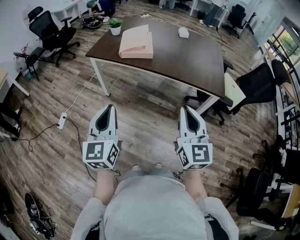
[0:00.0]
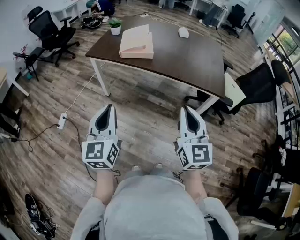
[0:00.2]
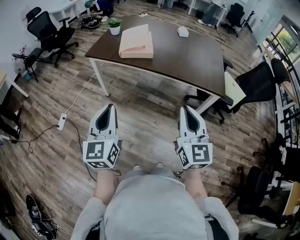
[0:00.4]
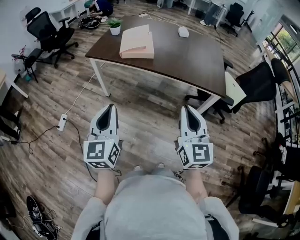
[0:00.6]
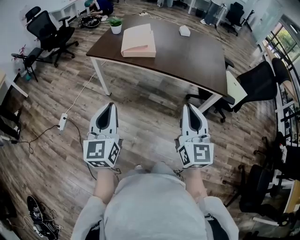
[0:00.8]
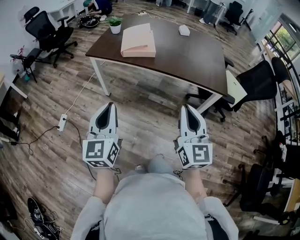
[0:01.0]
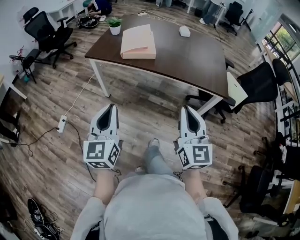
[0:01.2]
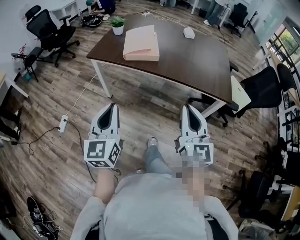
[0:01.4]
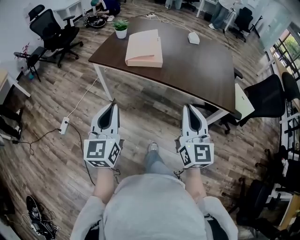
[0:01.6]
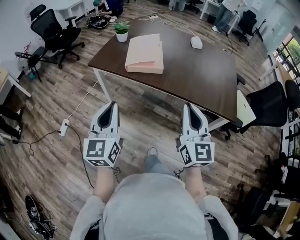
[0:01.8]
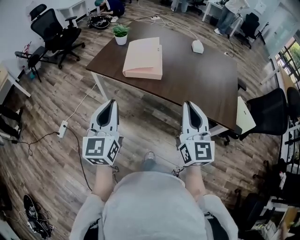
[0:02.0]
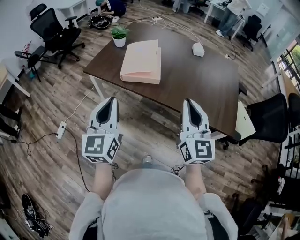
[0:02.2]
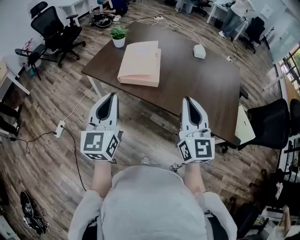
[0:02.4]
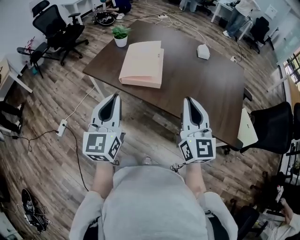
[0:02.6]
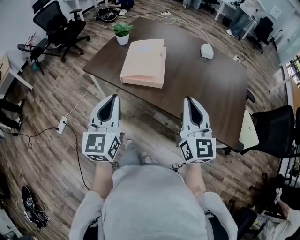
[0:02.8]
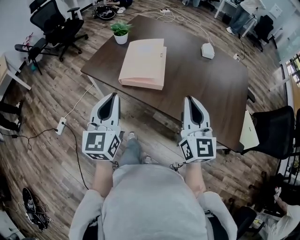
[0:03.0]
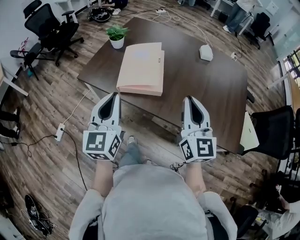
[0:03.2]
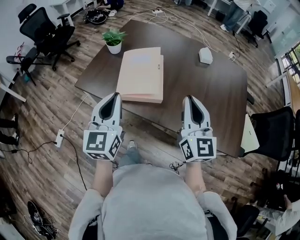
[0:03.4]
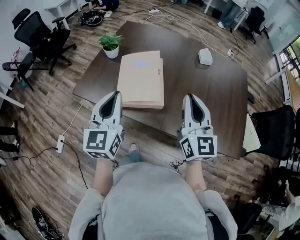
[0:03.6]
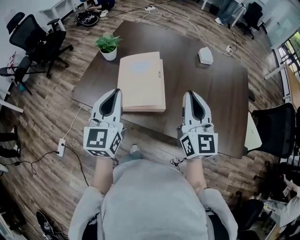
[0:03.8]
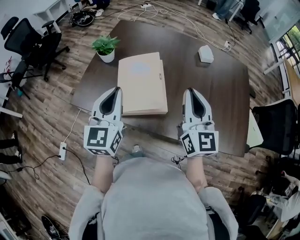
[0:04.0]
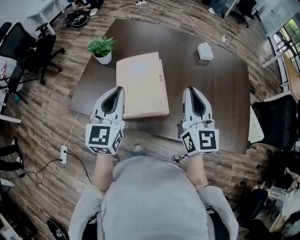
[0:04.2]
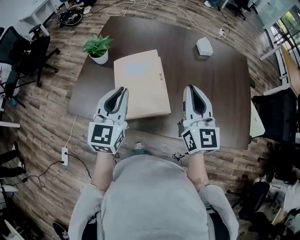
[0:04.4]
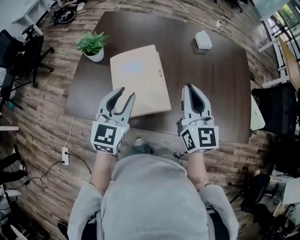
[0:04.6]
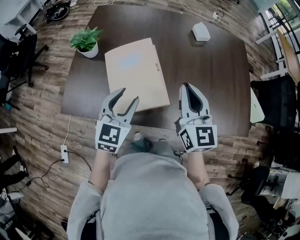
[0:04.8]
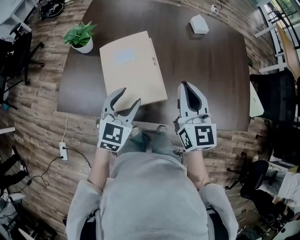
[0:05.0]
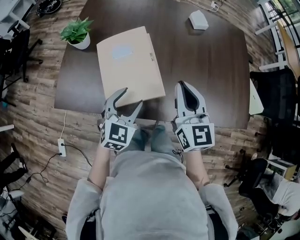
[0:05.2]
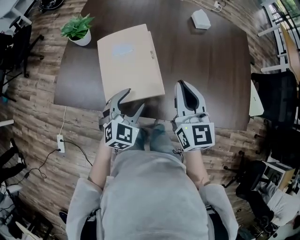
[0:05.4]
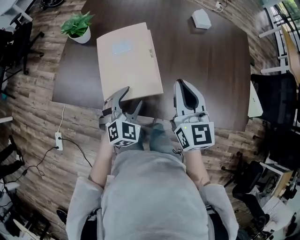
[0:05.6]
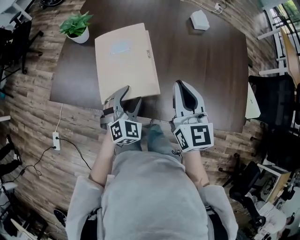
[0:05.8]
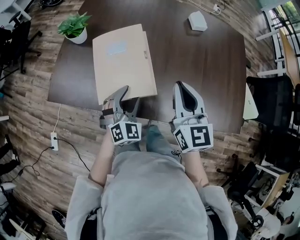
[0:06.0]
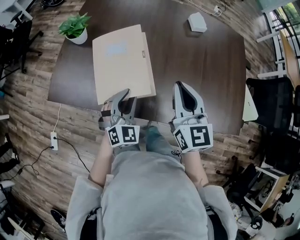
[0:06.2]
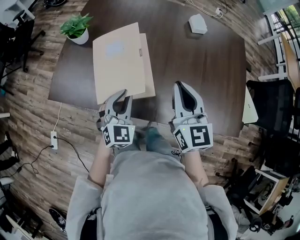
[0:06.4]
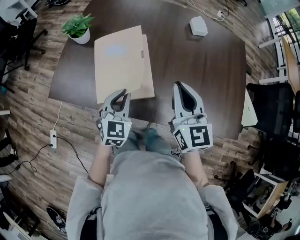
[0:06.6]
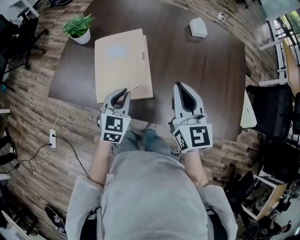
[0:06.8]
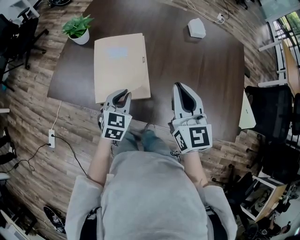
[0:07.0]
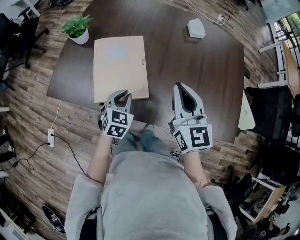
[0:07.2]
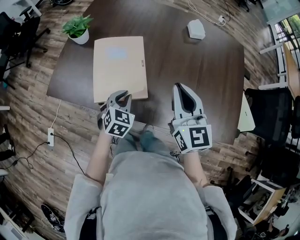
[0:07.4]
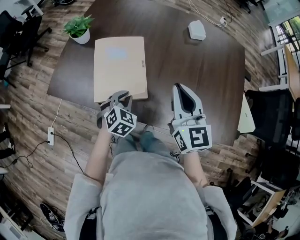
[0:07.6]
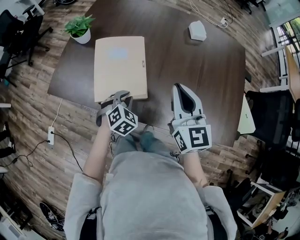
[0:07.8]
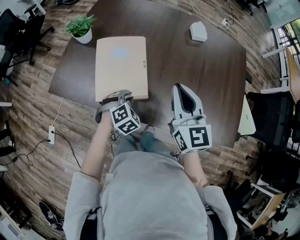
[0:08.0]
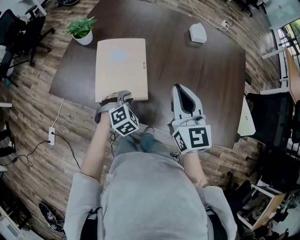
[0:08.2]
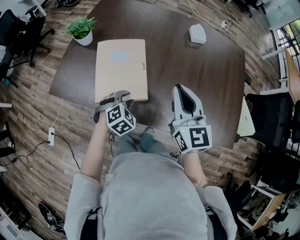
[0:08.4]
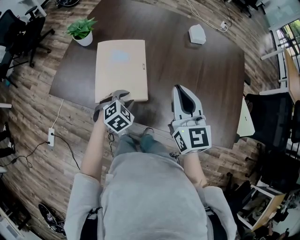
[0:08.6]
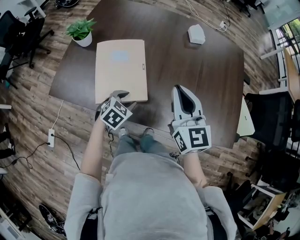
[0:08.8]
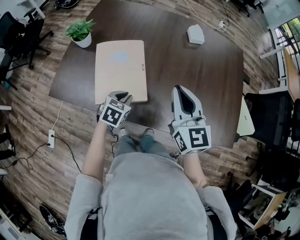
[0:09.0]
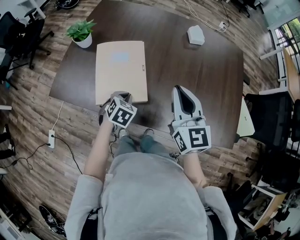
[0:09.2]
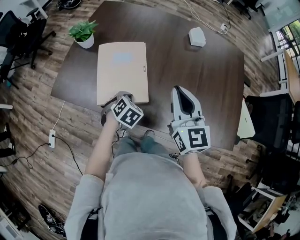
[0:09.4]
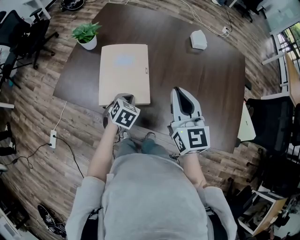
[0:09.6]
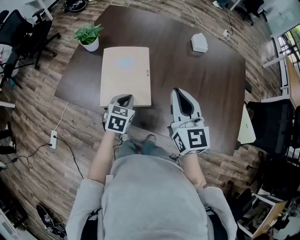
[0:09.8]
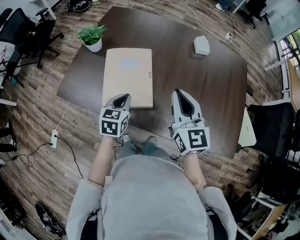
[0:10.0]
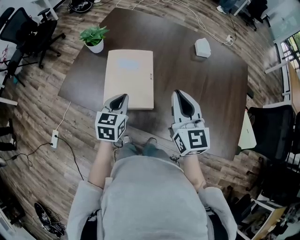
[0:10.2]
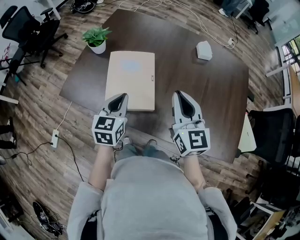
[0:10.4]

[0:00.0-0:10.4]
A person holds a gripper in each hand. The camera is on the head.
0:00.0 to 0:01.4: The grippers both shift forward by approximately 5 cm.
0:01.4 to 0:03.0: The two grippers go some 30 cm forward.
0:03.0 to 0:04.4: Both grippers move forward, some 25 cm. The left gripper rotates about 20 degrees.
0:04.4 to 0:06.0: The right gripper is displaced downward by roughly 5 cm. The left gripper travels downward and to the right by some 20 cm, changes its angle by about 40 degrees, and opens up.
0:06.0 to 0:07.4: The left gripper swivels approximately 30 degrees, and closes its fingers.
0:07.4 to 0:09.0: The left gripper opens, then closes again.
0:09.0 to 0:10.4: The left gripper goes approximately 15 cm upward, and changes its angle by roughly 30 degrees.

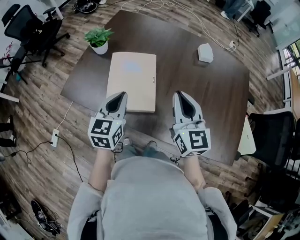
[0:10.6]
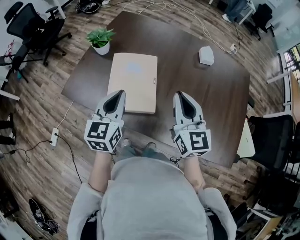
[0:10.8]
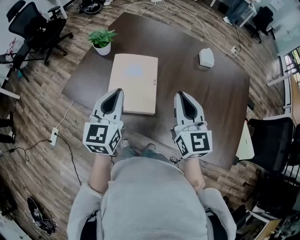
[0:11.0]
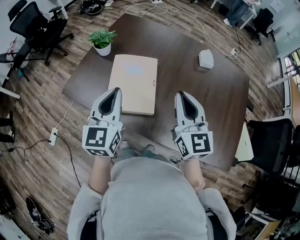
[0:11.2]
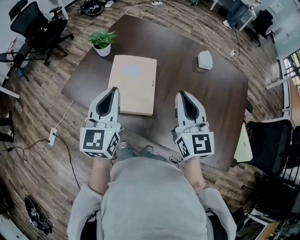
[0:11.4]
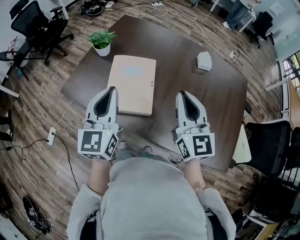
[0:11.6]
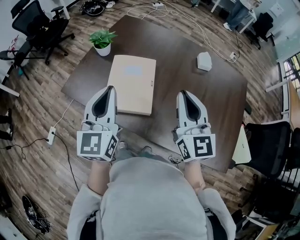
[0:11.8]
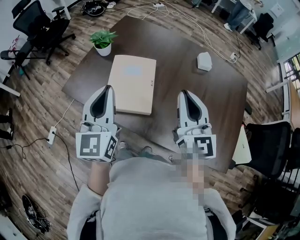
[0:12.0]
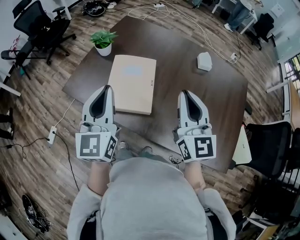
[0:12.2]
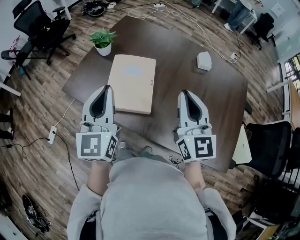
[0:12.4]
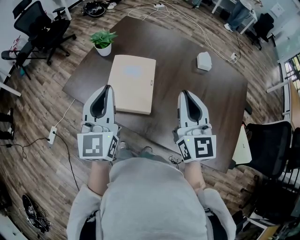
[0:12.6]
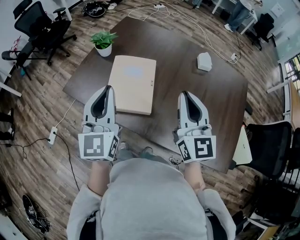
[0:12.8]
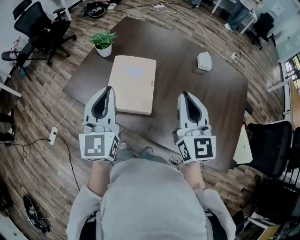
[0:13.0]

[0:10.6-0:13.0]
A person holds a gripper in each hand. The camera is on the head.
0:10.6 to 0:11.8: The left gripper is displaced upward by some 10 cm, and rotates approximately 20 degrees. The right gripper goes about 5 cm upward.
0:11.8 to 0:13.0: The grippers stay close to where they were, moving slightly.

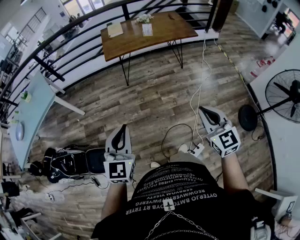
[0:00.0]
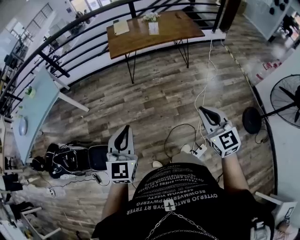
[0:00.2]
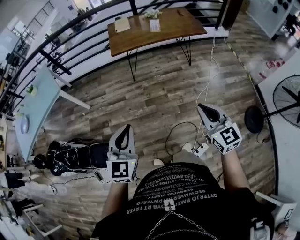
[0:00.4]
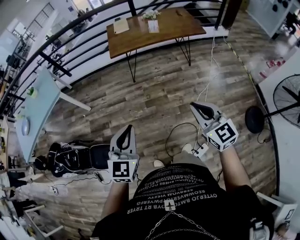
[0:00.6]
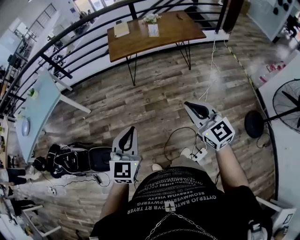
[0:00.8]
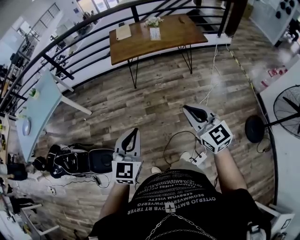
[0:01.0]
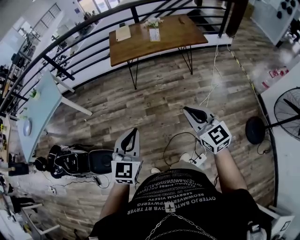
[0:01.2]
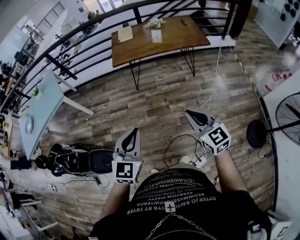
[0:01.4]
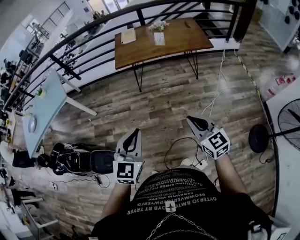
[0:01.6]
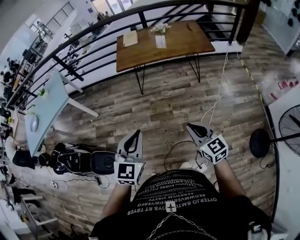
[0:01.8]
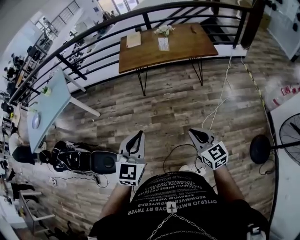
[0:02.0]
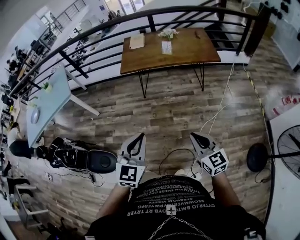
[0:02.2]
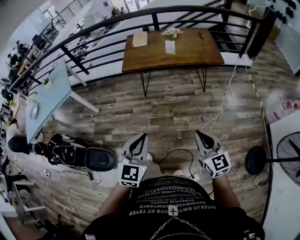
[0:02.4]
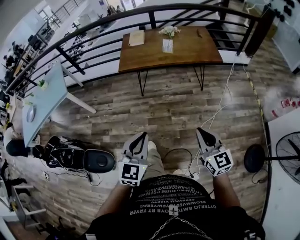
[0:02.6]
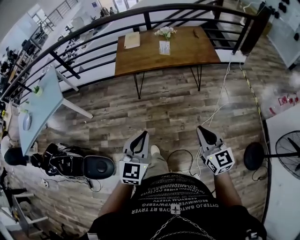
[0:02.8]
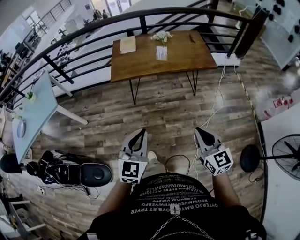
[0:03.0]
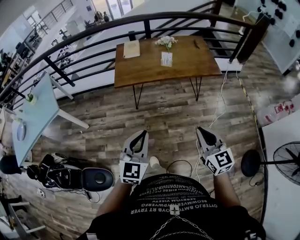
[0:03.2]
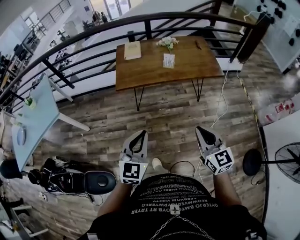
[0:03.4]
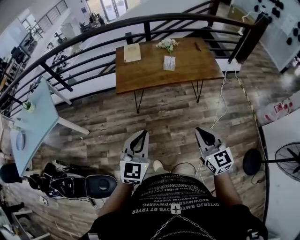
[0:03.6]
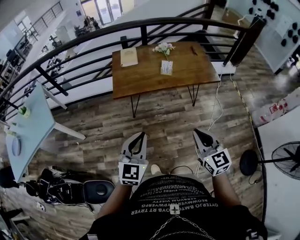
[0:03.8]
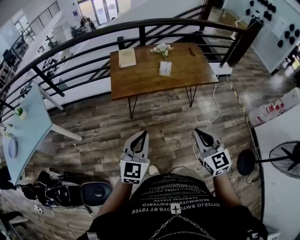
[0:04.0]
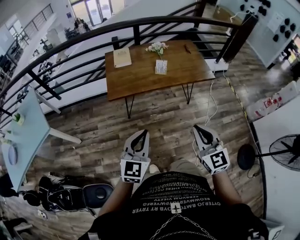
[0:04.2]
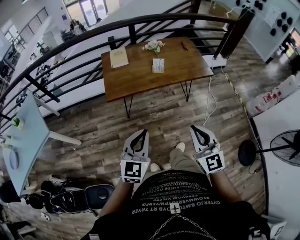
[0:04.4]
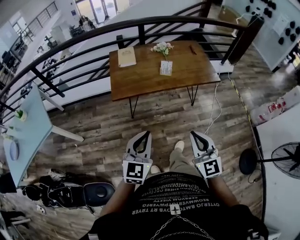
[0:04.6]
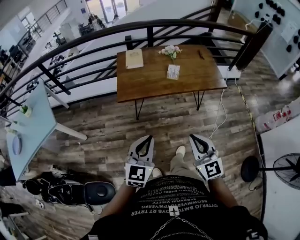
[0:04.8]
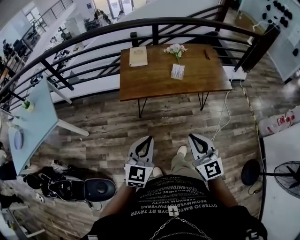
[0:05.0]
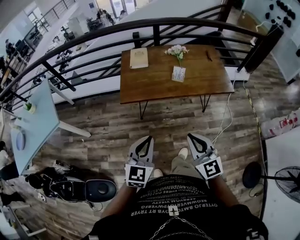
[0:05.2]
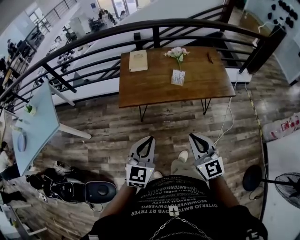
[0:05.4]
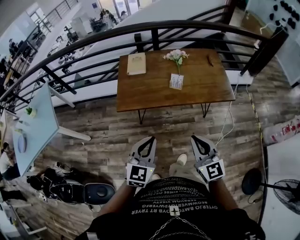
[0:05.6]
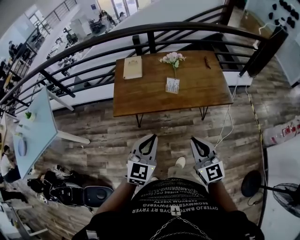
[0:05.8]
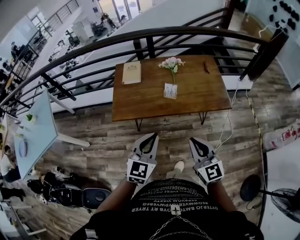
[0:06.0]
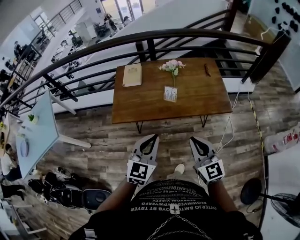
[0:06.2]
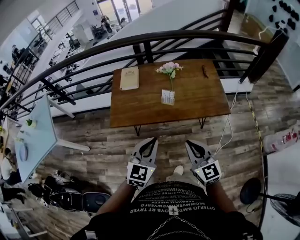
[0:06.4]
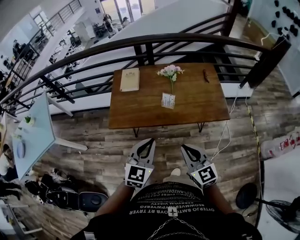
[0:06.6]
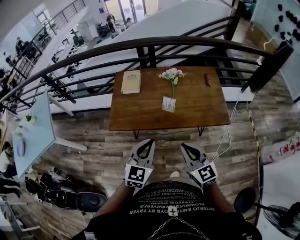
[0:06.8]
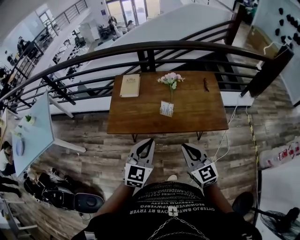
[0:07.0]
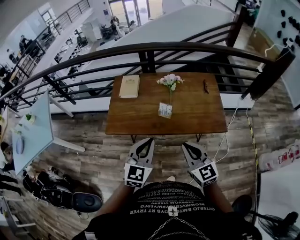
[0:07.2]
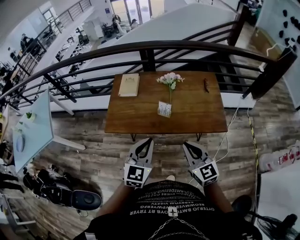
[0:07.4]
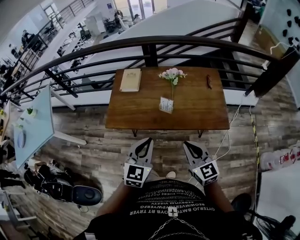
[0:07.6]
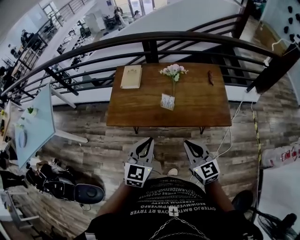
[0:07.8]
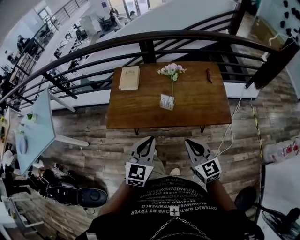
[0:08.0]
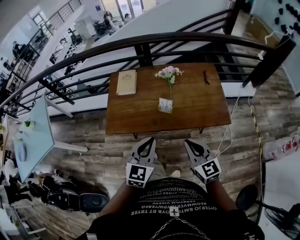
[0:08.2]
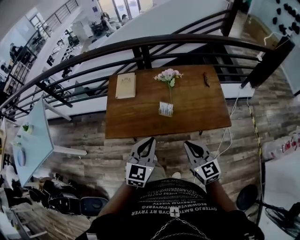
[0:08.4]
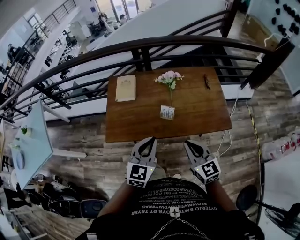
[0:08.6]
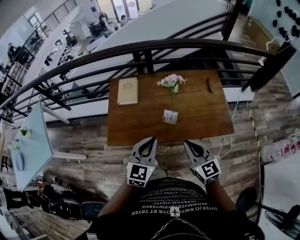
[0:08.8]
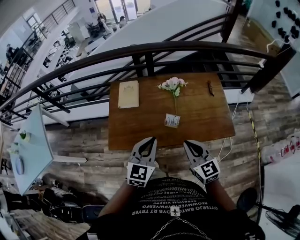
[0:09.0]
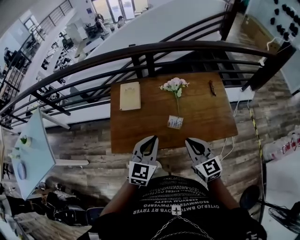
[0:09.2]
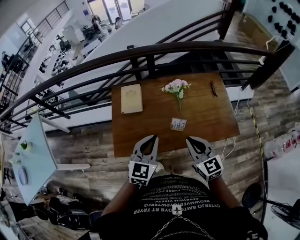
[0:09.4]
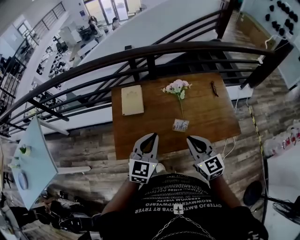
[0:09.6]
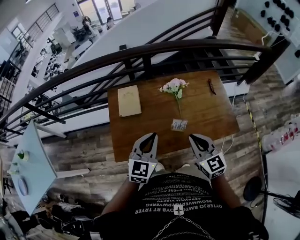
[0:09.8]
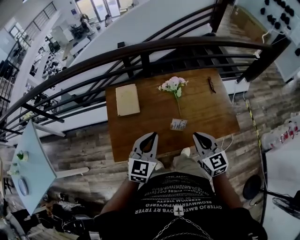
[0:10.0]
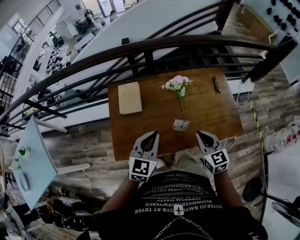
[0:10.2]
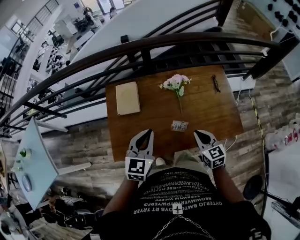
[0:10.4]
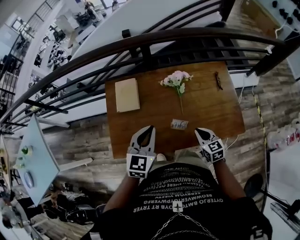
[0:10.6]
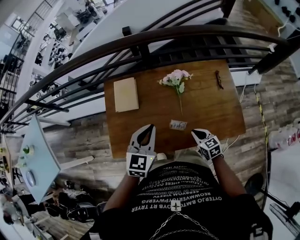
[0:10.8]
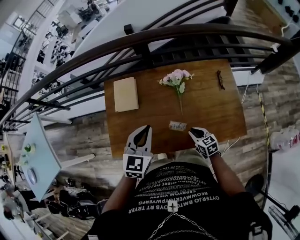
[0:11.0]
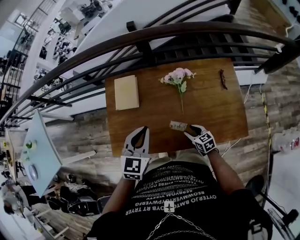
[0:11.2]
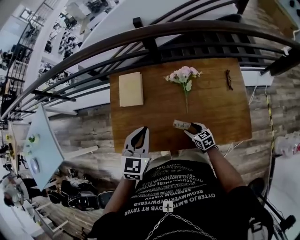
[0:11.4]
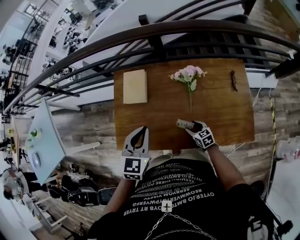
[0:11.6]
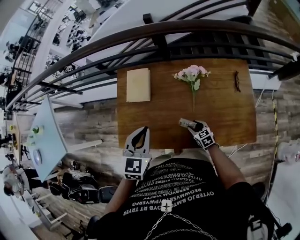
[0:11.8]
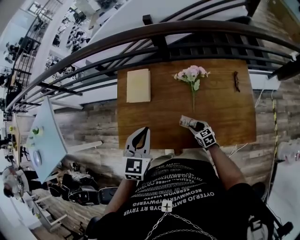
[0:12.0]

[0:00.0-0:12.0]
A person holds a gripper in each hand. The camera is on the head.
0:00.0 to 0:01.6: The left gripper is displaced to the right and forward by some 15 cm. The right gripper heads forward and to the right, covering about 10 cm.
0:01.6 to 0:03.0: The two grippers go some 15 cm forward.
0:03.0 to 0:04.4: The two grippers go about 15 cm forward and to the left.
0:04.4 to 0:06.0: Both grippers move forward and to the right, approximately 25 cm.
0:06.0 to 0:07.6: Both grippers travel together forward and to the right, some 10 cm.
0:07.6 to 0:09.0: The left gripper heads forward, covering roughly 15 cm. Meanwhile the right gripper shifts about 15 cm forward and to the left.
0:09.0 to 0:10.4: The right gripper heads forward and downward, covering roughly 15 cm. The left gripper travels forward by roughly 15 cm.
0:10.4 to 0:12.0: The right gripper goes some 25 cm downward, turns by about 30 degrees, and opens.
